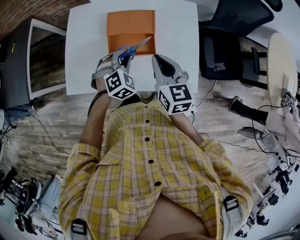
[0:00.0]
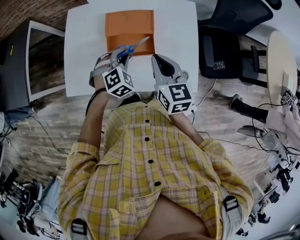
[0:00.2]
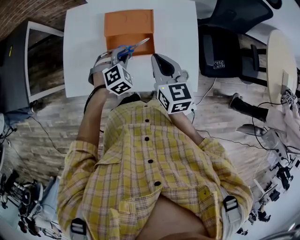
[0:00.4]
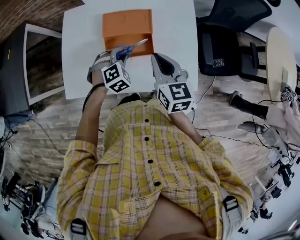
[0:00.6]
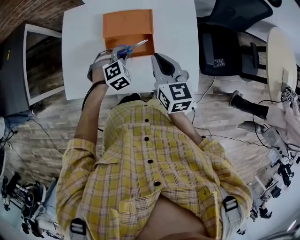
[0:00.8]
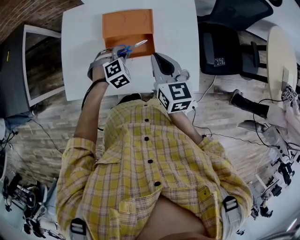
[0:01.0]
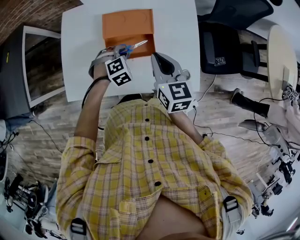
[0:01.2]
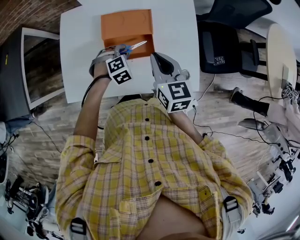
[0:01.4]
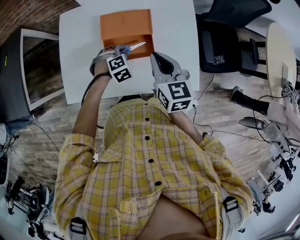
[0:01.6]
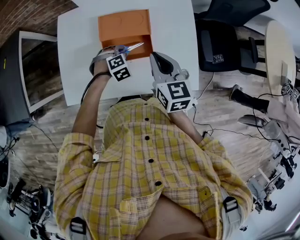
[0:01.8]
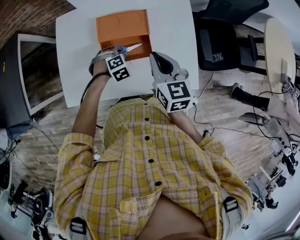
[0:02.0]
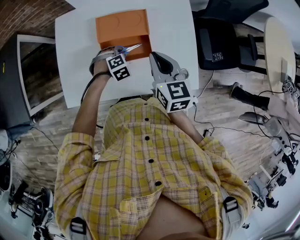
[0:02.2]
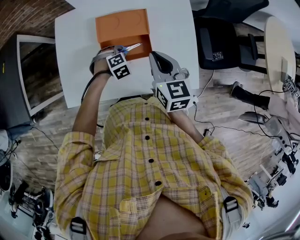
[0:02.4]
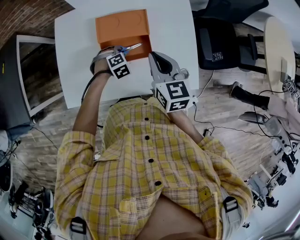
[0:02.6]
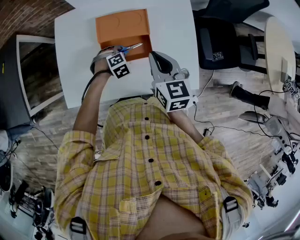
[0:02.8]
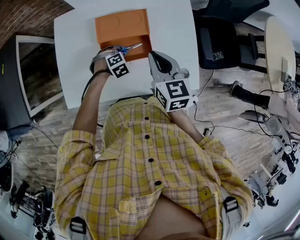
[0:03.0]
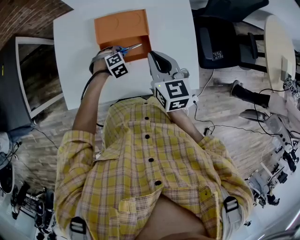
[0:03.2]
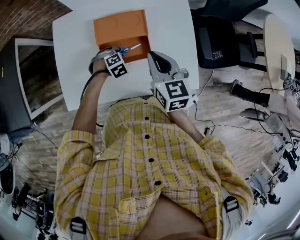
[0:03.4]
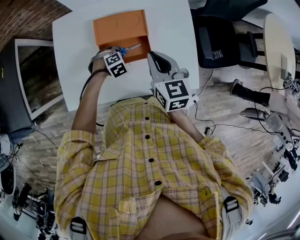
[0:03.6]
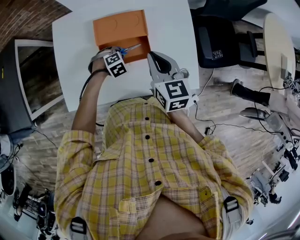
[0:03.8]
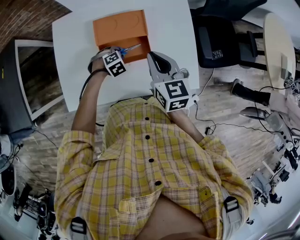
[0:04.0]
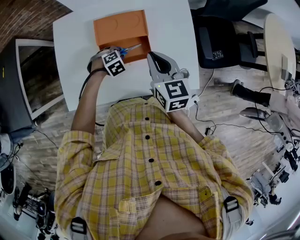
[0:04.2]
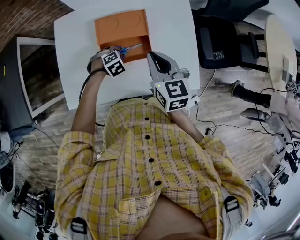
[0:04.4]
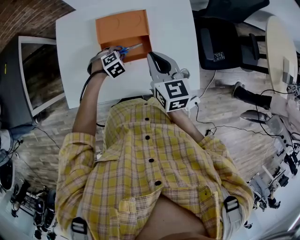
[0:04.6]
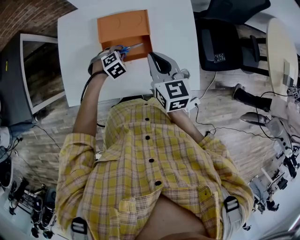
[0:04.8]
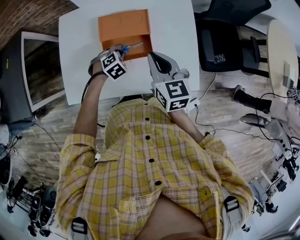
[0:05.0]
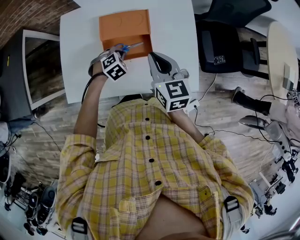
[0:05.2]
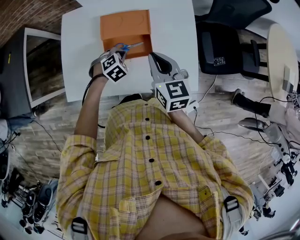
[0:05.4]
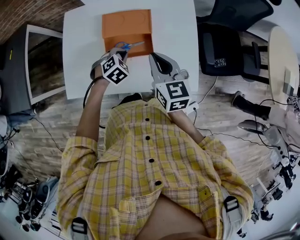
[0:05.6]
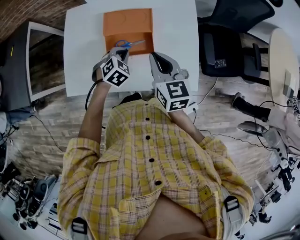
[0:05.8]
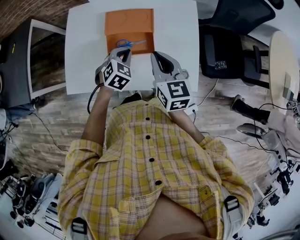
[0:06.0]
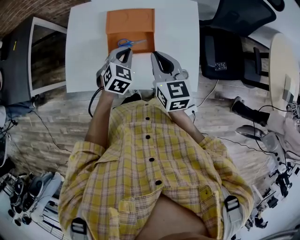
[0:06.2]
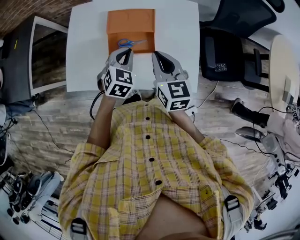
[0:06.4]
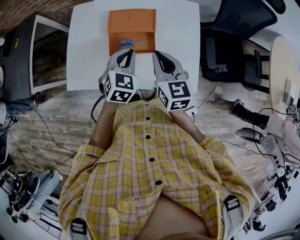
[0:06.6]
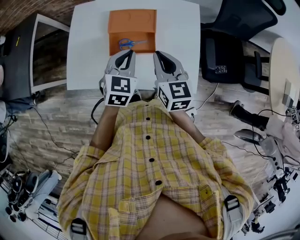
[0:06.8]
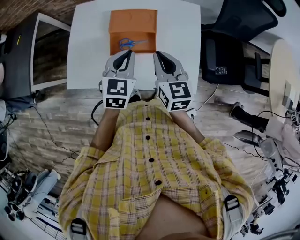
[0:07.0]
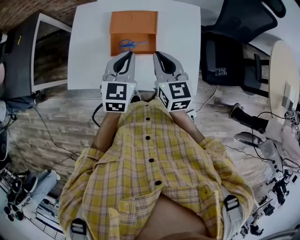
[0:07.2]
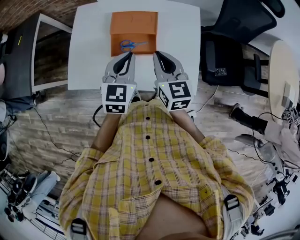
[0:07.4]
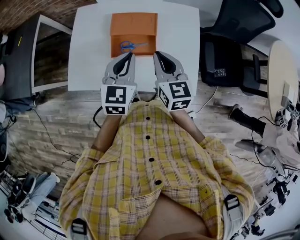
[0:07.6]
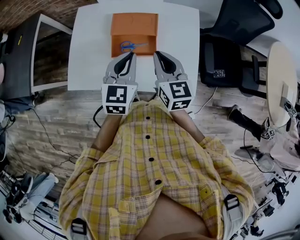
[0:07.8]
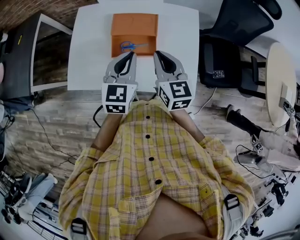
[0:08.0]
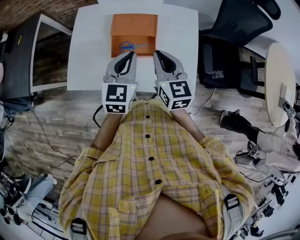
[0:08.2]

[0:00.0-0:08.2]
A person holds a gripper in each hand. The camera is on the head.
0:00.0 to 0:01.6: The left gripper is displaced downward by about 10 cm, and turns by approximately 20 degrees.
0:01.6 to 0:03.2: The left gripper moves downward, about 5 cm.
0:03.2 to 0:05.0: There are only small adjustments of the grippers.
0:05.0 to 0:06.6: The left gripper is displaced upward by about 20 cm, and tips its fingers upward by about 30 degrees.
0:06.6 to 0:08.2: The left gripper heads upward, covering roughly 5 cm, and changes its angle by approximately 20 degrees.

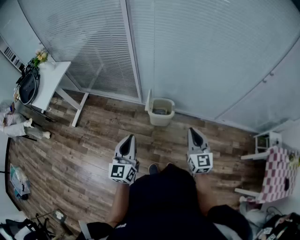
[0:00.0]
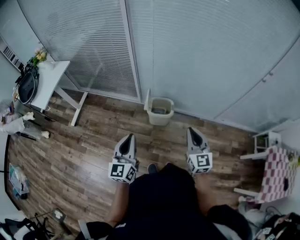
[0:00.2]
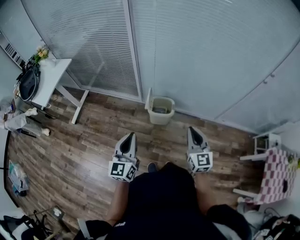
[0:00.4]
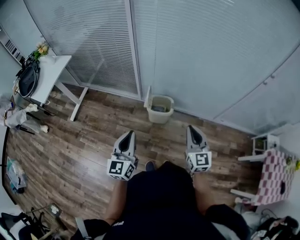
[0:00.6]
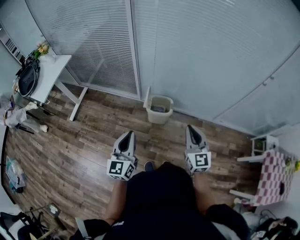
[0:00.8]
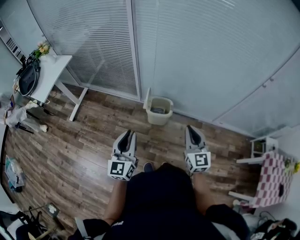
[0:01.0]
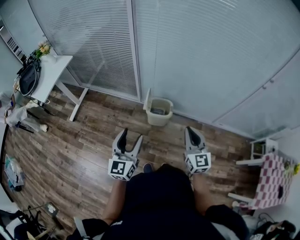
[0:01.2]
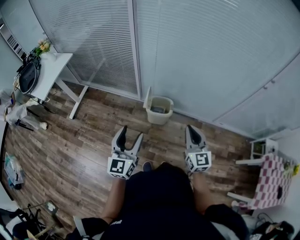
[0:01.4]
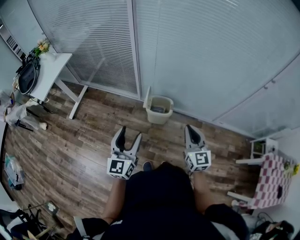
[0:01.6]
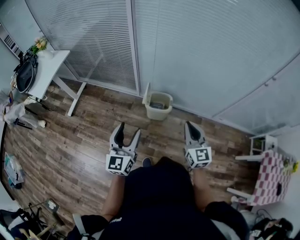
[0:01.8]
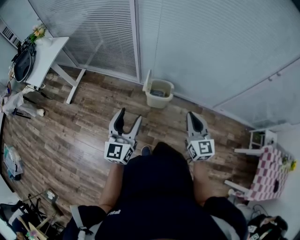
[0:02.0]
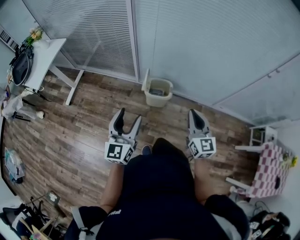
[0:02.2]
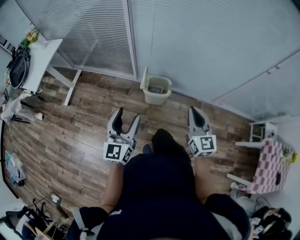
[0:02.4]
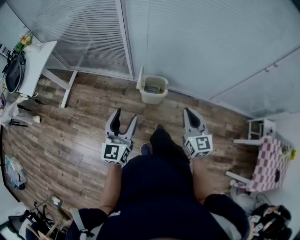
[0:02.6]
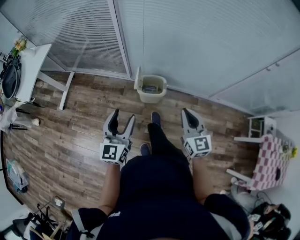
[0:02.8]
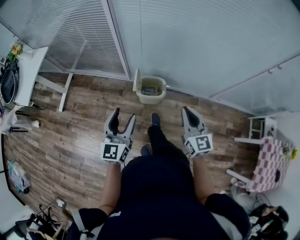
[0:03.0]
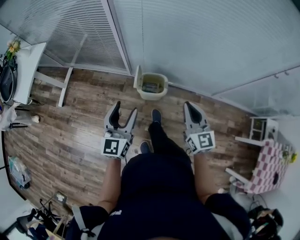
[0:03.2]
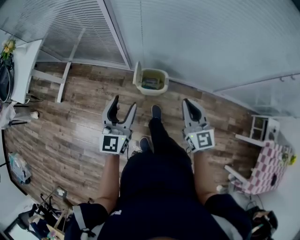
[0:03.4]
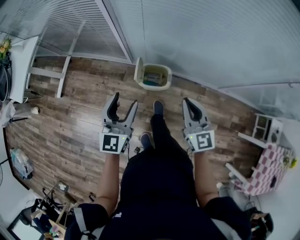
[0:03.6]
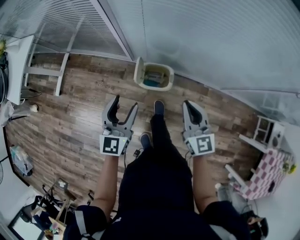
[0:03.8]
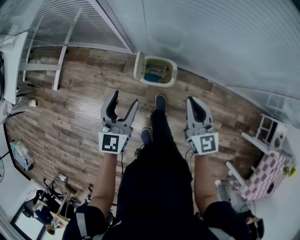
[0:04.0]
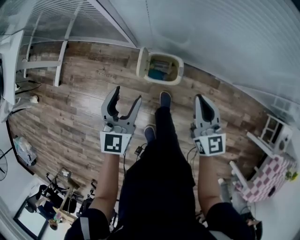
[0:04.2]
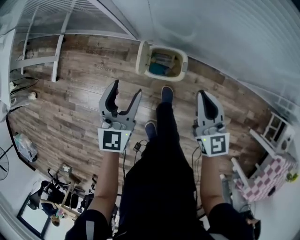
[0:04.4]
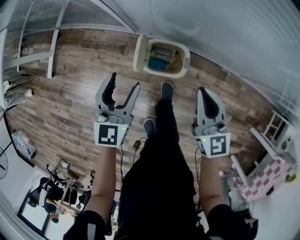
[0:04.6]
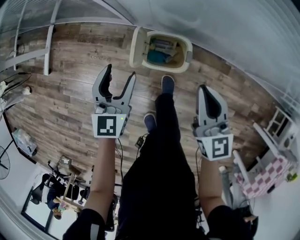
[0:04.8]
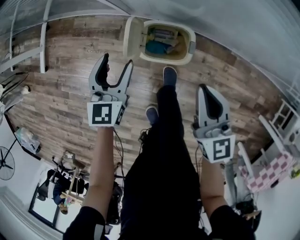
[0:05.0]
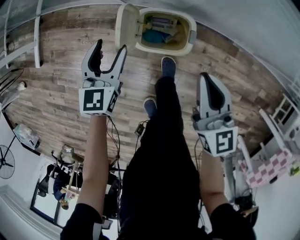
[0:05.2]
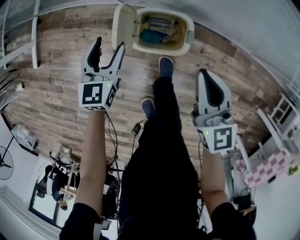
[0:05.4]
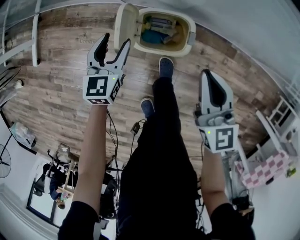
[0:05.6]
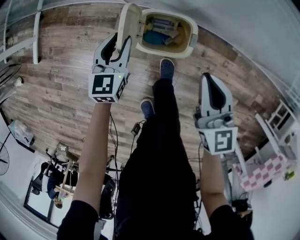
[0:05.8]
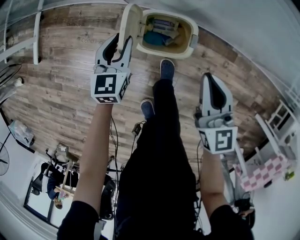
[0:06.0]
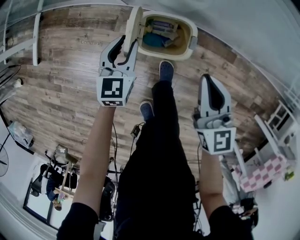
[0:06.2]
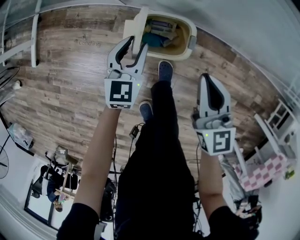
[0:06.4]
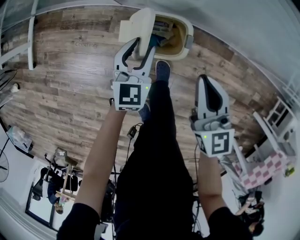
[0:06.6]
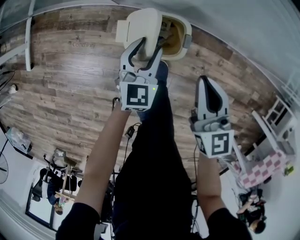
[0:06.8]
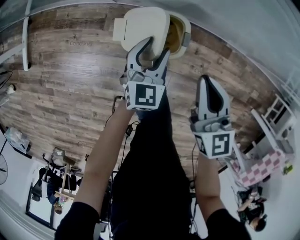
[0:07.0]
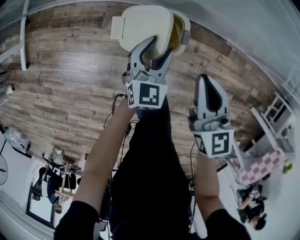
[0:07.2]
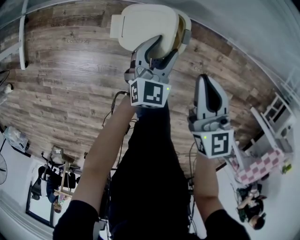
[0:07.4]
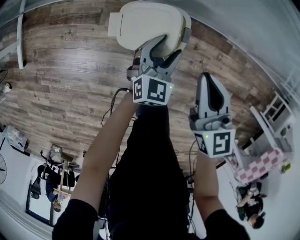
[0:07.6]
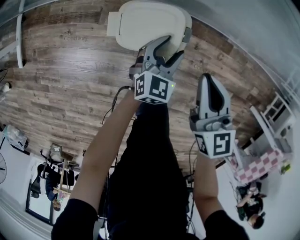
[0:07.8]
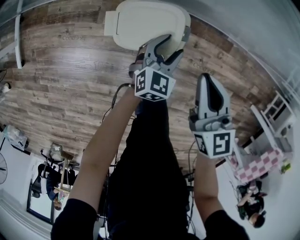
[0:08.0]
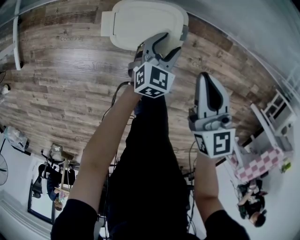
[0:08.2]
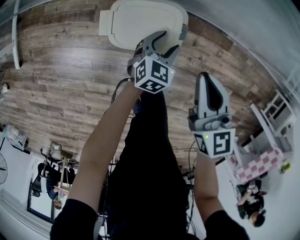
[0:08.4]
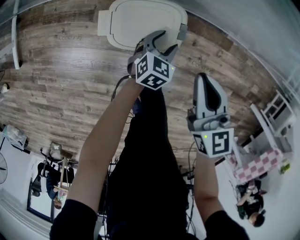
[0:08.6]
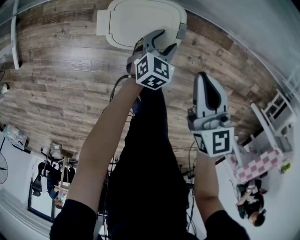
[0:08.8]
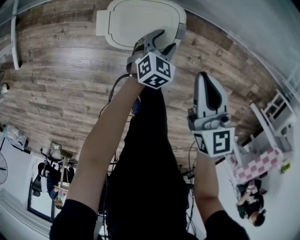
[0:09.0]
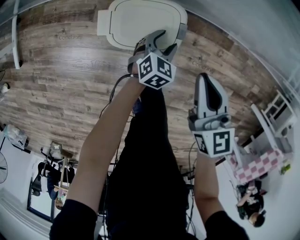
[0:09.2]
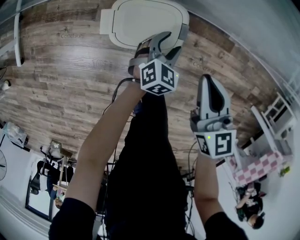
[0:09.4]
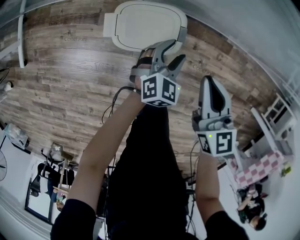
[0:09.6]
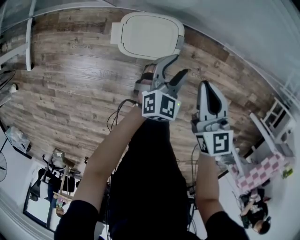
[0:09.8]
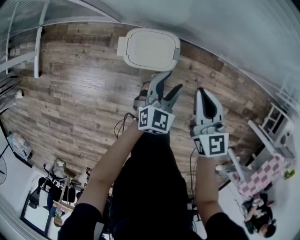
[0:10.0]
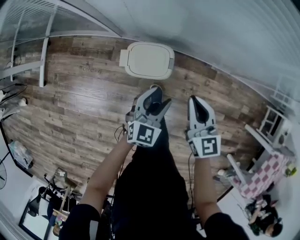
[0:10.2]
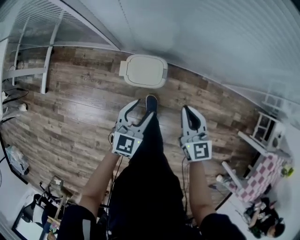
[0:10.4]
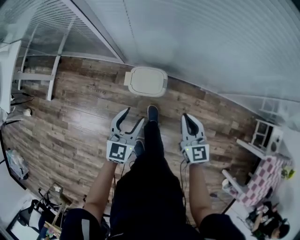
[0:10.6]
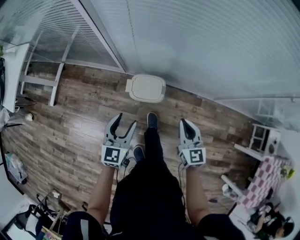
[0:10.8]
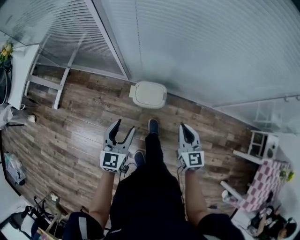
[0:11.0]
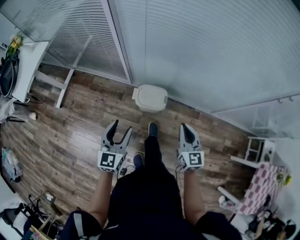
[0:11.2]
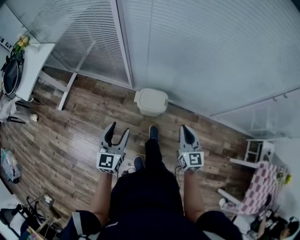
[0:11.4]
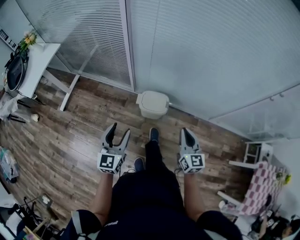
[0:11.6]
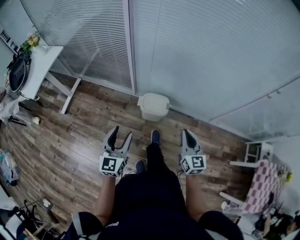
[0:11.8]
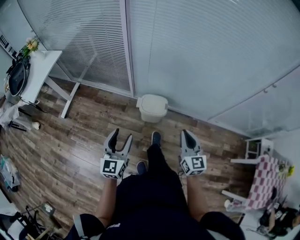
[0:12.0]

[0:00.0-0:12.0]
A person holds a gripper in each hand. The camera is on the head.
0:00.0 to 0:01.6: The left gripper opens up.
0:01.6 to 0:03.0: Both grippers move forward, roughly 10 cm.
0:03.0 to 0:04.4: The grippers both shift forward and downward by approximately 25 cm.
0:04.4 to 0:06.0: The right gripper heads downward, covering roughly 10 cm; the left gripper moves downward, some 25 cm, and closes.
0:06.0 to 0:07.6: The left gripper shifts some 20 cm to the right, changes its angle by roughly 20 degrees, and opens up.
0:07.6 to 0:09.0: The left gripper heads downward, covering some 10 cm, and rotates approximately 20 degrees.
0:09.0 to 0:10.4: The left gripper is displaced upward by approximately 35 cm, and turns by some 30 degrees. The right gripper travels upward by about 15 cm.
0:10.4 to 0:12.0: The left gripper travels upward, backward and to the left by roughly 35 cm, and rotates approximately 30 degrees. Meanwhile the right gripper travels backward and upward by roughly 25 cm.

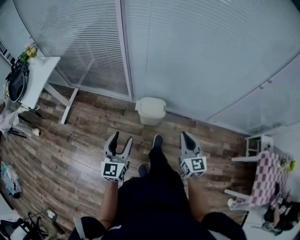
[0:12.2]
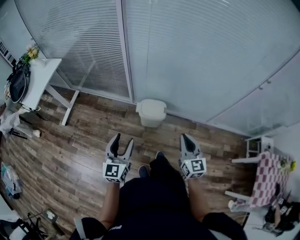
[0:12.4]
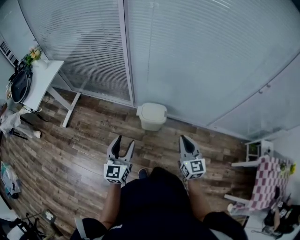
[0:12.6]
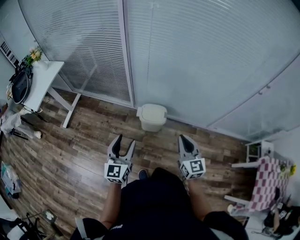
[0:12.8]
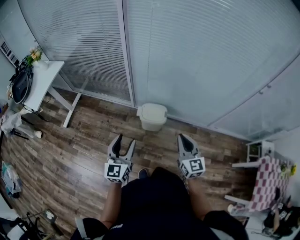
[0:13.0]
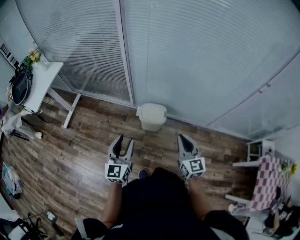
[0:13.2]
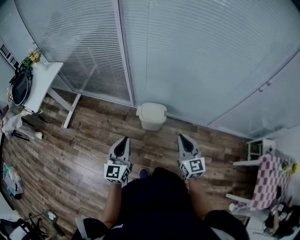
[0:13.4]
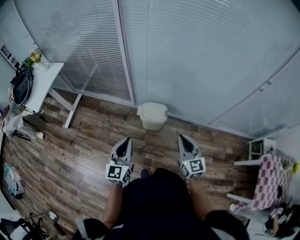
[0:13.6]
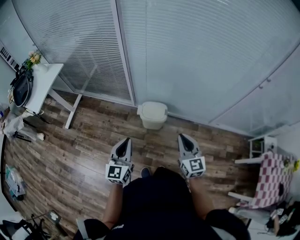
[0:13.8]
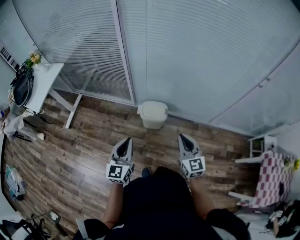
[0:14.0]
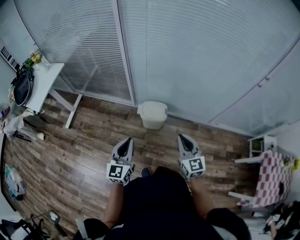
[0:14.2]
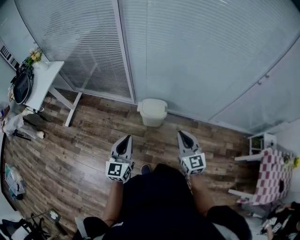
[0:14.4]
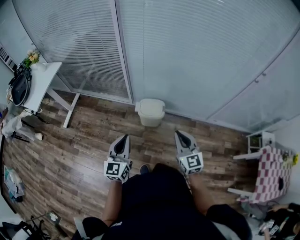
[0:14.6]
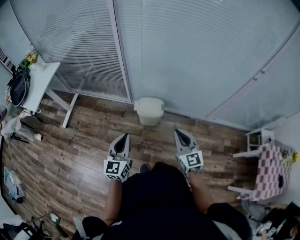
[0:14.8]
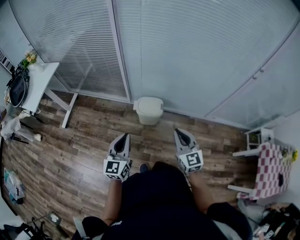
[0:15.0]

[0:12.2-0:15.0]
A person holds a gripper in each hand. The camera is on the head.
0:12.2 to 0:13.6: The left gripper closes.
0:13.6 to 0:15.0: The grippers move only a little.

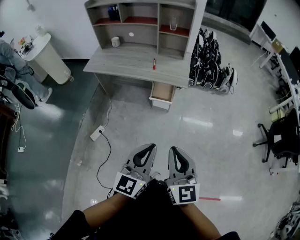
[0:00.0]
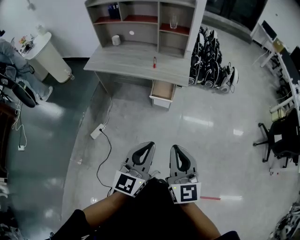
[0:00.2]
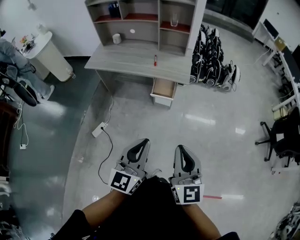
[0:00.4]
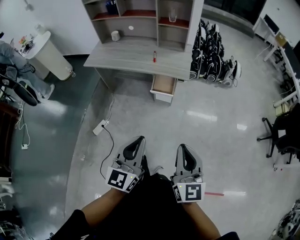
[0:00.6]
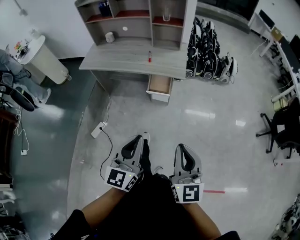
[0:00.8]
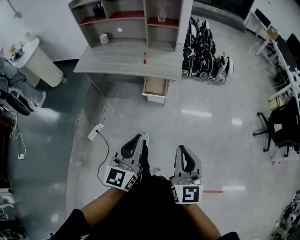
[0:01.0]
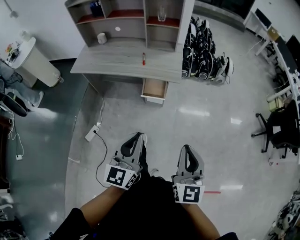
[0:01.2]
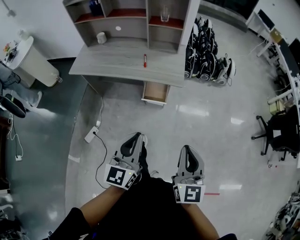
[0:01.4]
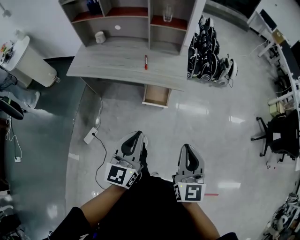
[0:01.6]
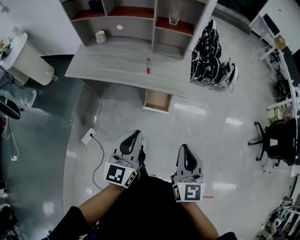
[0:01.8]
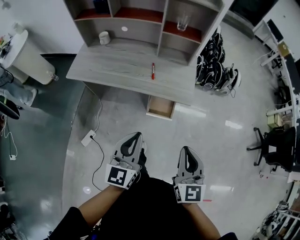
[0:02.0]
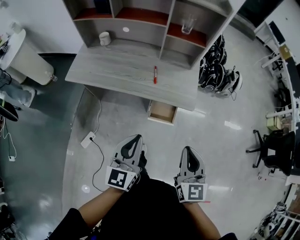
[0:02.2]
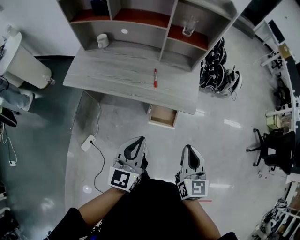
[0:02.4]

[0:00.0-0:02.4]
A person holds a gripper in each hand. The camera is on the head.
0:00.0 to 0:01.2: The left gripper heads forward, covering about 10 cm. The right gripper moves to the right and forward, approximately 10 cm.
0:01.2 to 0:02.4: The grippers both shift forward and to the left by about 30 cm.
